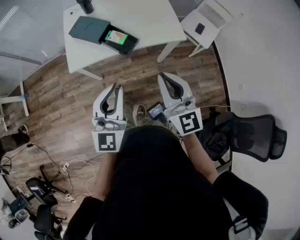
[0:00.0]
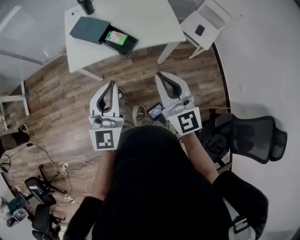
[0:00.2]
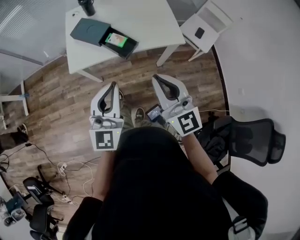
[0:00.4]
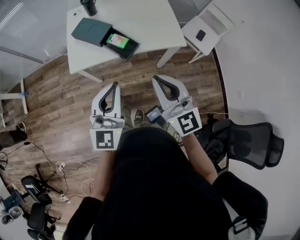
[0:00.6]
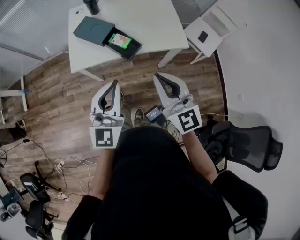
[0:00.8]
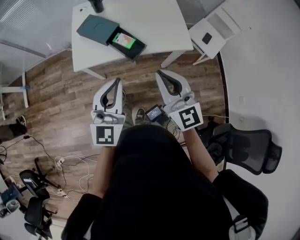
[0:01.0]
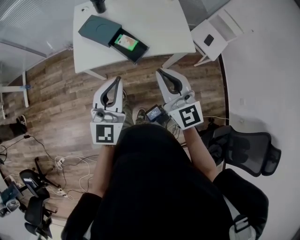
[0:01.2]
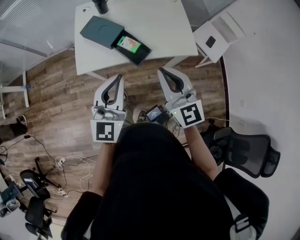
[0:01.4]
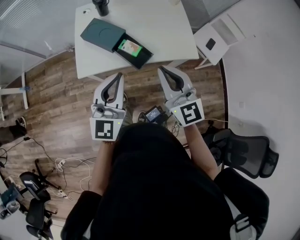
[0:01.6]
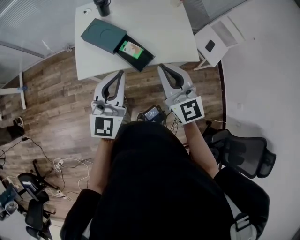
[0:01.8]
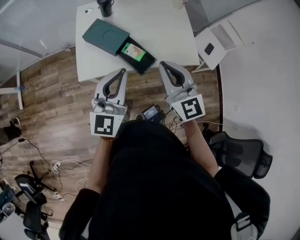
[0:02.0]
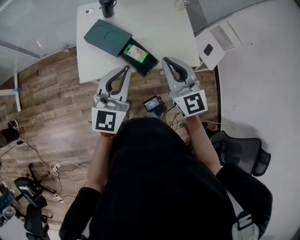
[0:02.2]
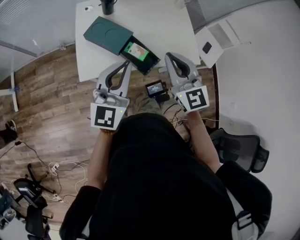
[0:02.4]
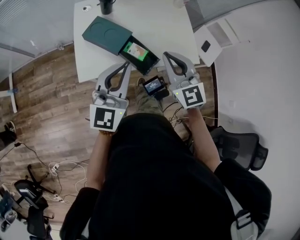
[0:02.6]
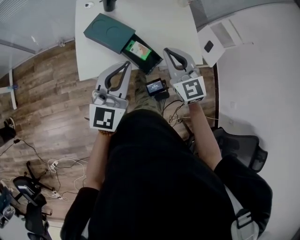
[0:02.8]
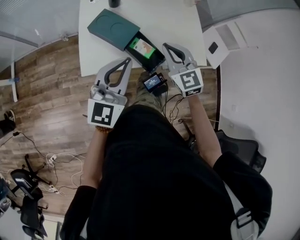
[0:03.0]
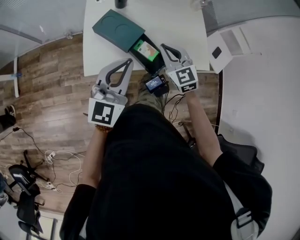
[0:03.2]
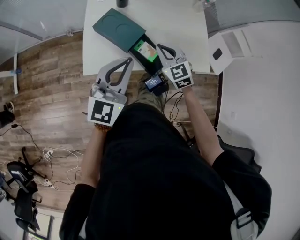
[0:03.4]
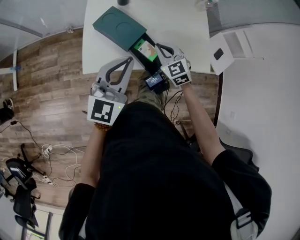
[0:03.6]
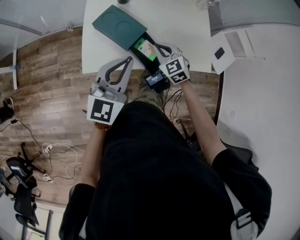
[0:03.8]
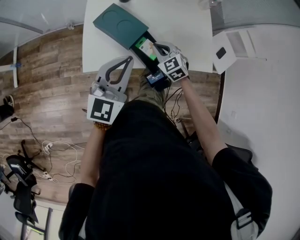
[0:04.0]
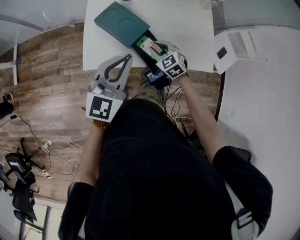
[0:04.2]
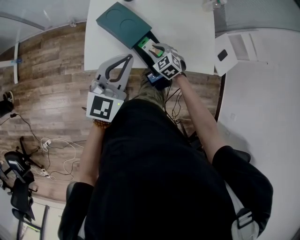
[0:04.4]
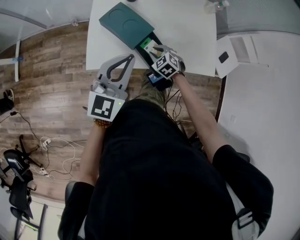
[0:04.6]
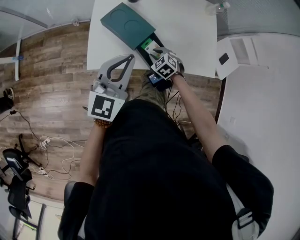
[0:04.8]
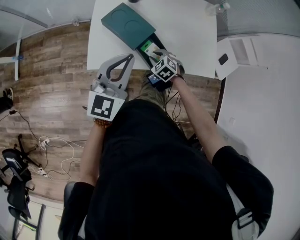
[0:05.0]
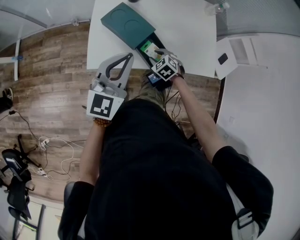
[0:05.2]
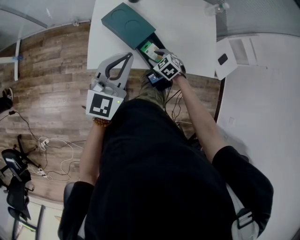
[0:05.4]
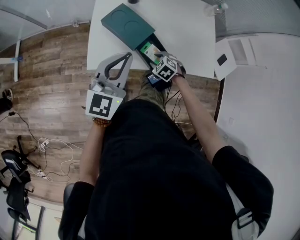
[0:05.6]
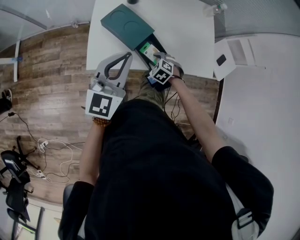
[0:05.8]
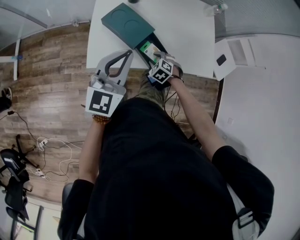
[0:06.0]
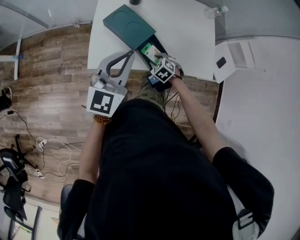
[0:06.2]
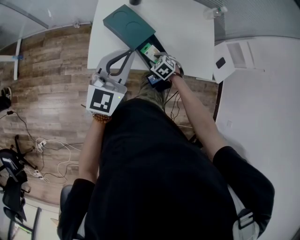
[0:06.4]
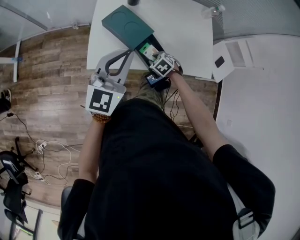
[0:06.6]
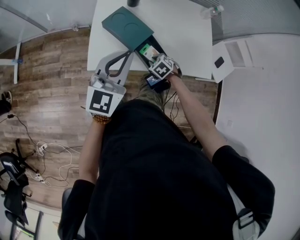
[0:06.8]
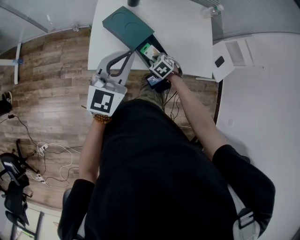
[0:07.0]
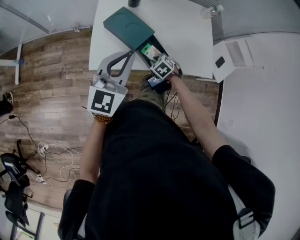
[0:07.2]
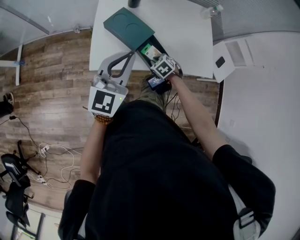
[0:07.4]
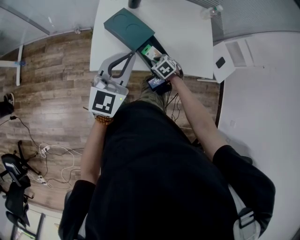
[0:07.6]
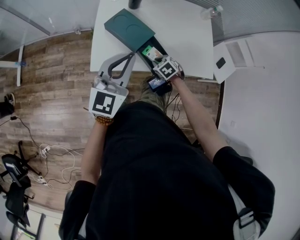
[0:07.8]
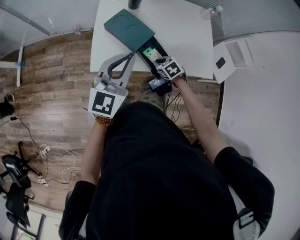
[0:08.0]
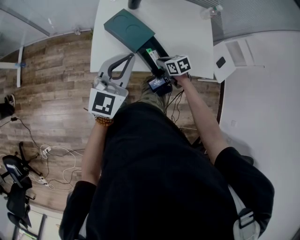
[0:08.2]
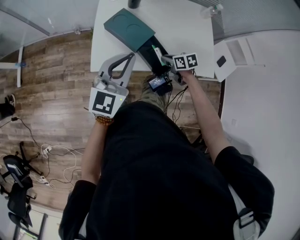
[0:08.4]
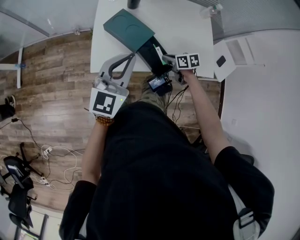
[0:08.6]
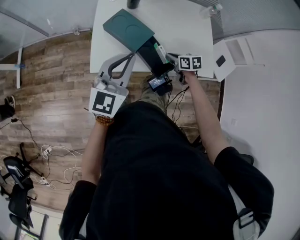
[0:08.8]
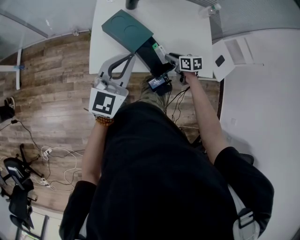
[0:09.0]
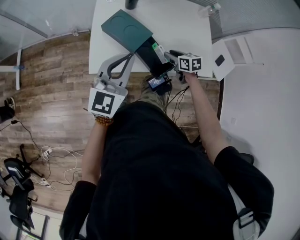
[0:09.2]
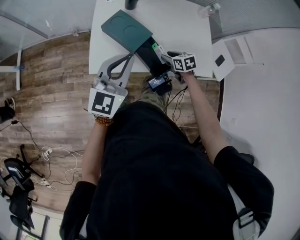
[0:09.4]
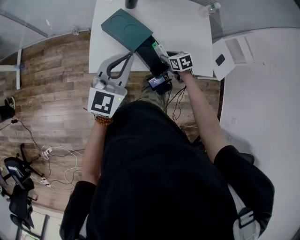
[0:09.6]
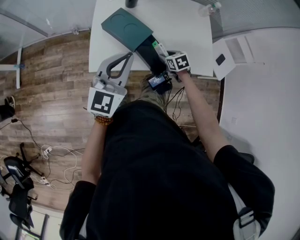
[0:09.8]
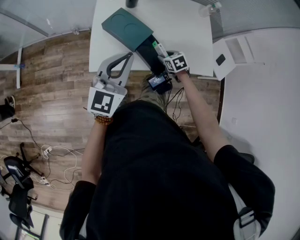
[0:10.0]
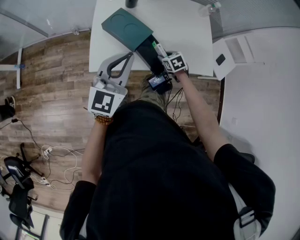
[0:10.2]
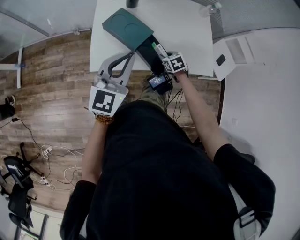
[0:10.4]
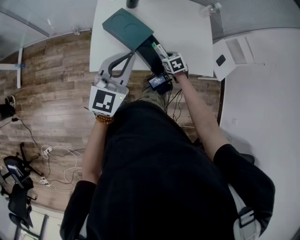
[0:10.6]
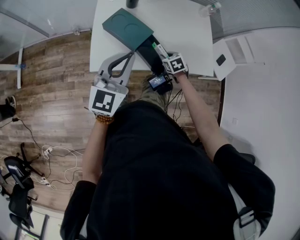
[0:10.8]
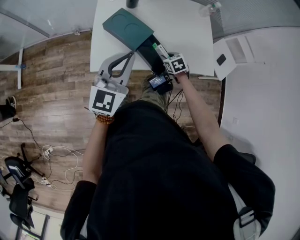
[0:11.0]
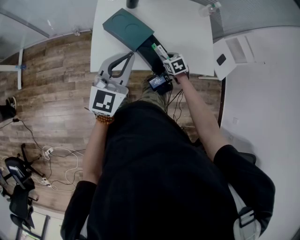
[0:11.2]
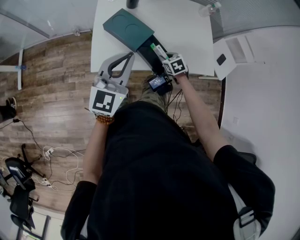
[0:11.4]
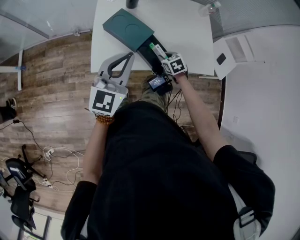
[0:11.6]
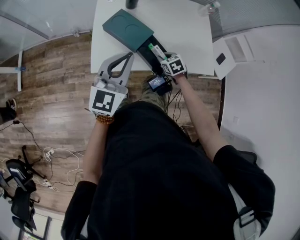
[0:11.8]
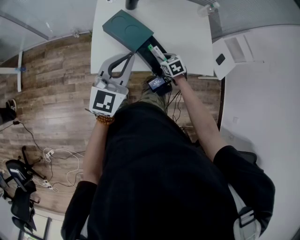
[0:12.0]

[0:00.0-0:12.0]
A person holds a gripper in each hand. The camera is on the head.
0:00.0 to 0:01.6: The two grippers go about 15 cm forward.
0:01.6 to 0:03.0: The right gripper moves forward, downward and to the left, some 20 cm. Meanwhile the left gripper heads forward and to the left, covering about 10 cm.
0:03.0 to 0:04.4: The left gripper moves some 5 cm. The right gripper moves downward, some 20 cm, tips its fingers downward by approximately 30 degrees, and opens.
0:04.4 to 0:06.0: The right gripper is displaced downward by approximately 5 cm.
0:06.0 to 0:07.6: The right gripper closes up.
0:07.6 to 0:09.0: The right gripper shifts some 10 cm to the right and upward, and rolls clockwise, seen from behind, by about 40 degrees.
0:09.0 to 0:10.4: The right gripper changes place by approximately 5 cm, and swivels roughly 30 degrees.
0:10.4 to 0:12.0: The grippers stay close to where they were, moving slightly.

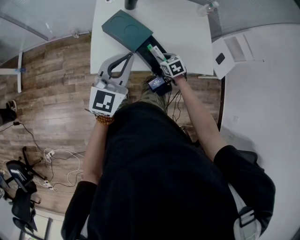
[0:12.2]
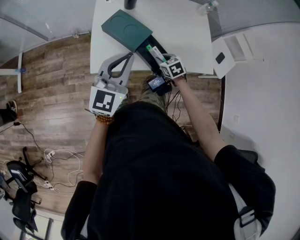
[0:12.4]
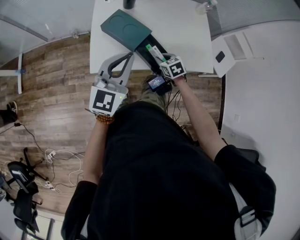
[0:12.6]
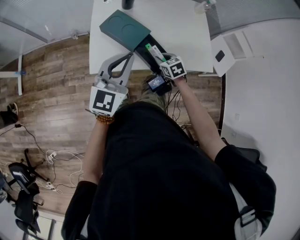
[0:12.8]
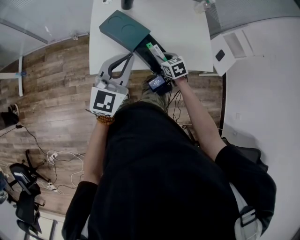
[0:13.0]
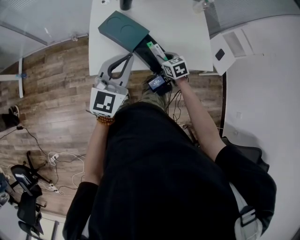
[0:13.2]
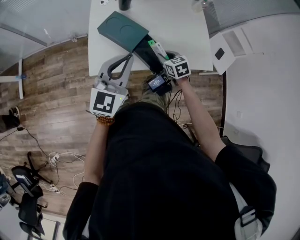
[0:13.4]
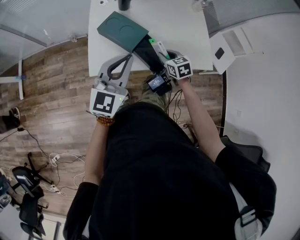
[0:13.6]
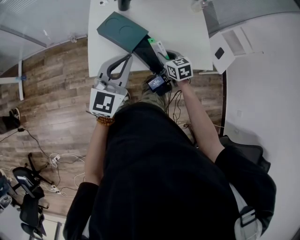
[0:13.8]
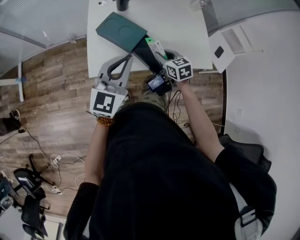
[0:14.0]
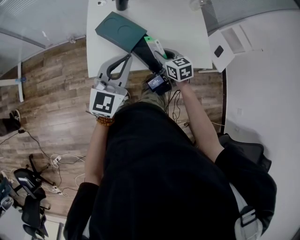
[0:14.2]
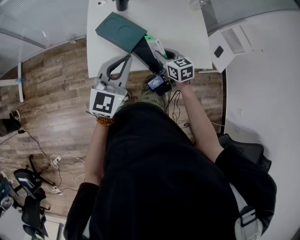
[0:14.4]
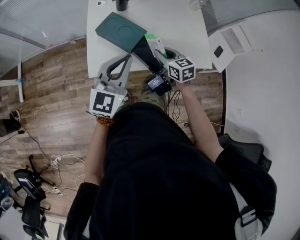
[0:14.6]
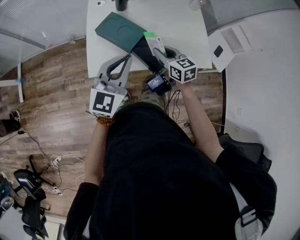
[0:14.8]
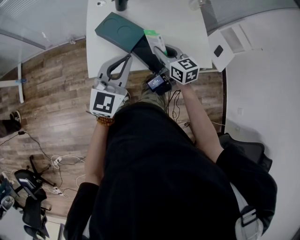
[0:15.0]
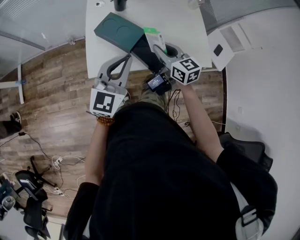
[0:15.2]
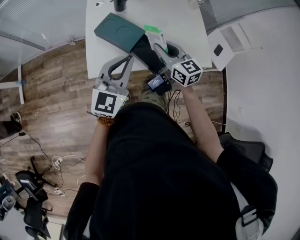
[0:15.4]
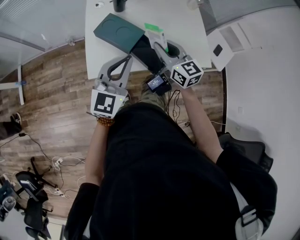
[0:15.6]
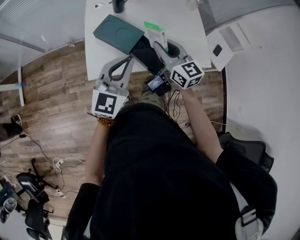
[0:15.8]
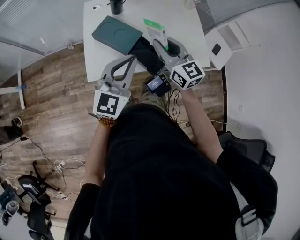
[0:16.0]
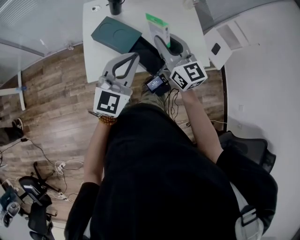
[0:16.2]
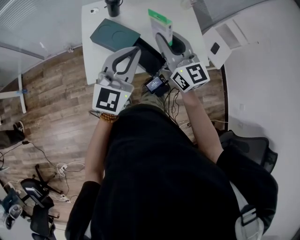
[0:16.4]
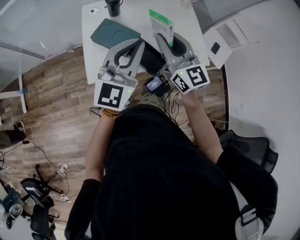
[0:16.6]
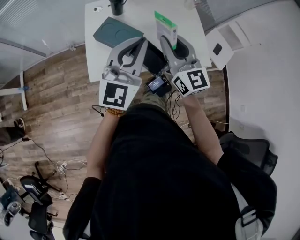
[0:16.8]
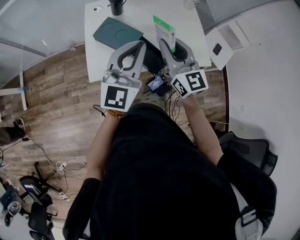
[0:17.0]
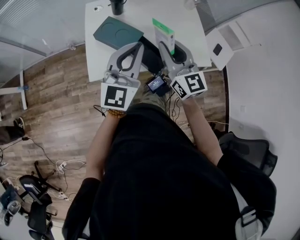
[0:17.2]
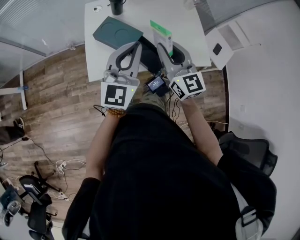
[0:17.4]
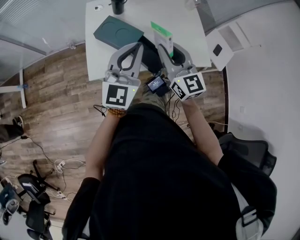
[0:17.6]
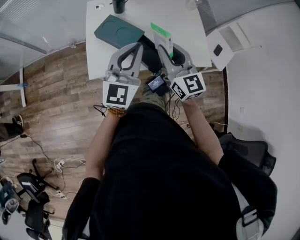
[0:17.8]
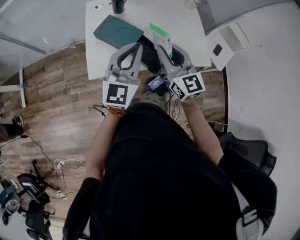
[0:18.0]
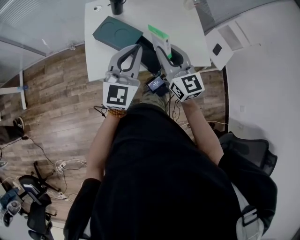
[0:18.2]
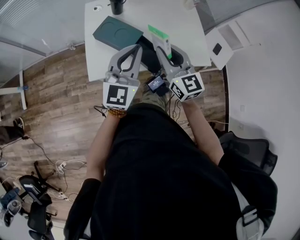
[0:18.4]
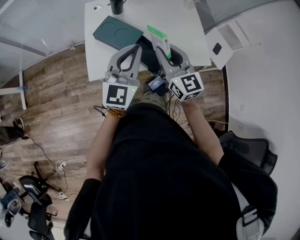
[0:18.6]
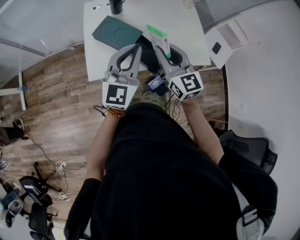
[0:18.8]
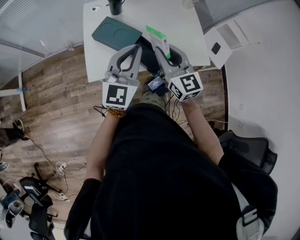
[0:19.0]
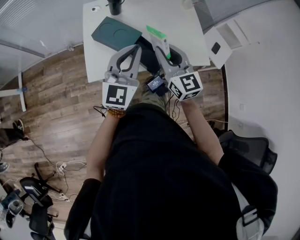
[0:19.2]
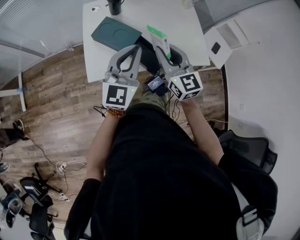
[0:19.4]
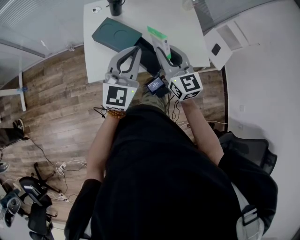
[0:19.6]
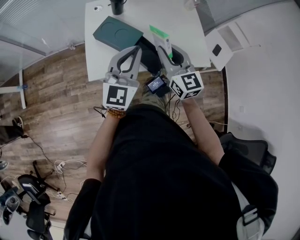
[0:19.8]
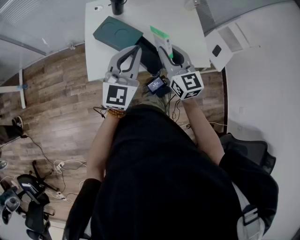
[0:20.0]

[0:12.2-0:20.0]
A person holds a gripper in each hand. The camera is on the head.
0:12.2 to 0:13.8: The right gripper shifts approximately 10 cm upward.
0:13.8 to 0:15.4: The right gripper shifts roughly 15 cm upward, and swivels approximately 30 degrees.
0:15.4 to 0:16.8: Both grippers travel together upward, about 10 cm. The right gripper changes its angle by some 20 degrees.
0:16.8 to 0:18.4: Both grippers move downward, approximately 5 cm.
0:18.4 to 0:20.0: There are only small adjustments of the grippers.

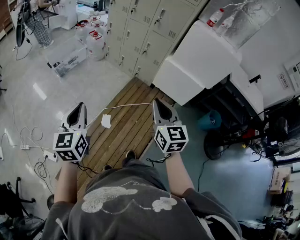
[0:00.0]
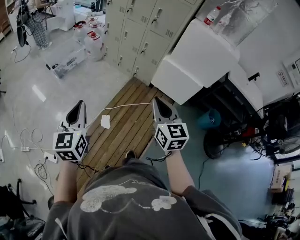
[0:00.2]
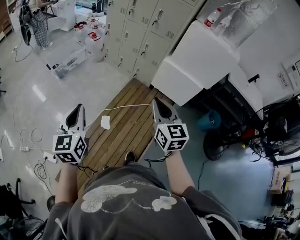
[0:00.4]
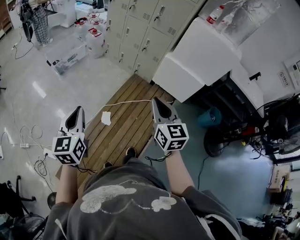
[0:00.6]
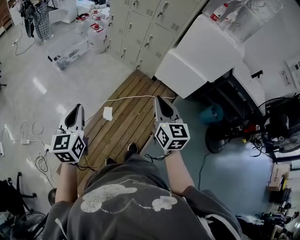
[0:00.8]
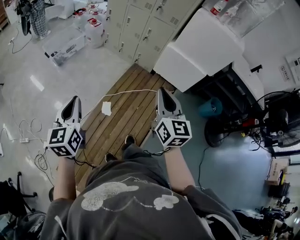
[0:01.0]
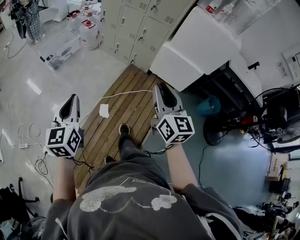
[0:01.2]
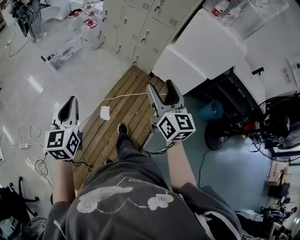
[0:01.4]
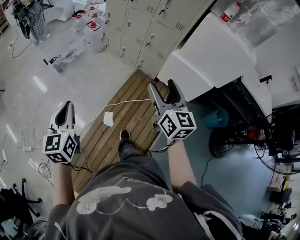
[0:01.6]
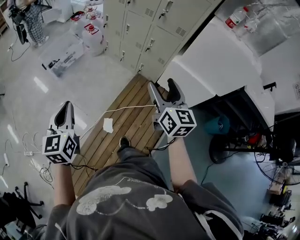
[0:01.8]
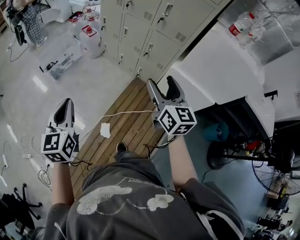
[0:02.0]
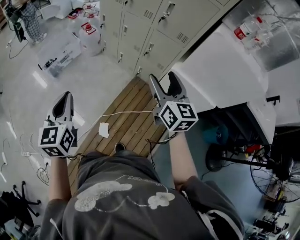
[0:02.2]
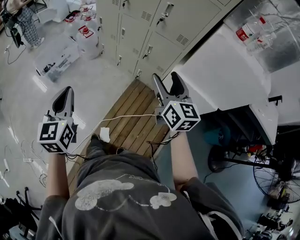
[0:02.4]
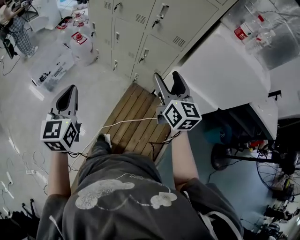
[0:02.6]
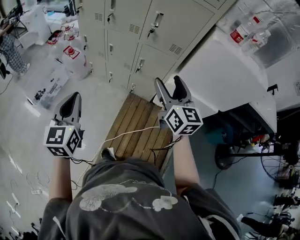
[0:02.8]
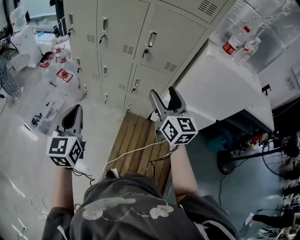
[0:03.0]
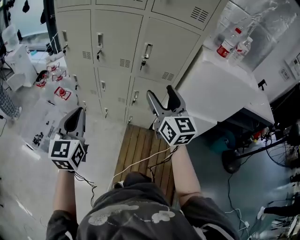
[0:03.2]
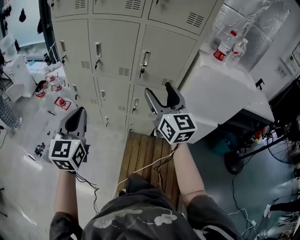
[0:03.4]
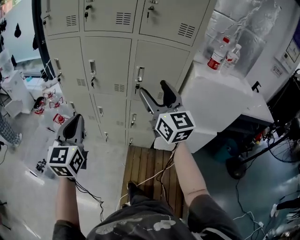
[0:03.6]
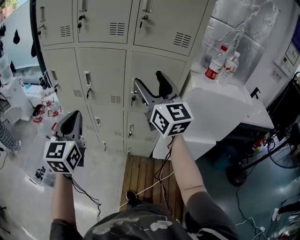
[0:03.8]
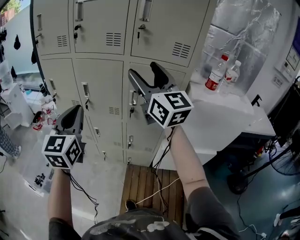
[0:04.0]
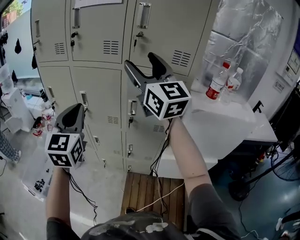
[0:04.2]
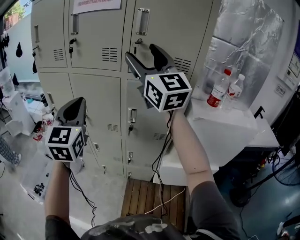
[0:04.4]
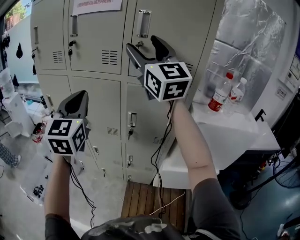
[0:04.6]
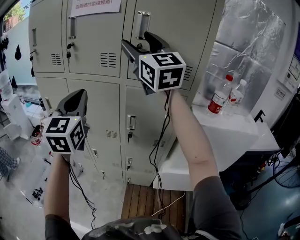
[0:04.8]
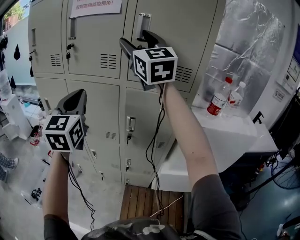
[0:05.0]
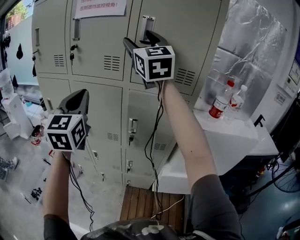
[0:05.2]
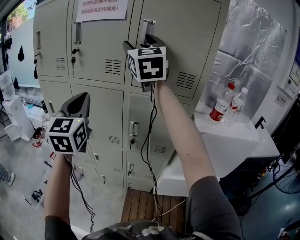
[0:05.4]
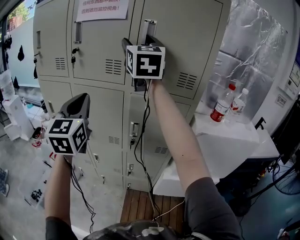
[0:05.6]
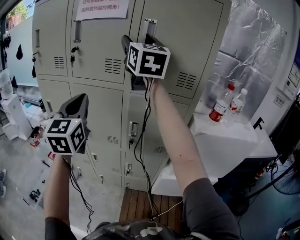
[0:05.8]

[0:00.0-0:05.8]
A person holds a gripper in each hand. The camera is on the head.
0:00.0 to 0:01.4: Both grippers move forward, some 5 cm. The right gripper opens.
0:01.4 to 0:02.8: Both grippers are carried forward, roughly 50 cm.
0:02.8 to 0:04.4: The left gripper travels forward and upward by roughly 40 cm, and rotates roughly 30 degrees, while the right gripper moves upward and forward, some 40 cm, and rotates approximately 40 degrees.
0:04.4 to 0:05.8: The left gripper heads forward, covering roughly 5 cm. The right gripper shifts about 10 cm forward and upward.
